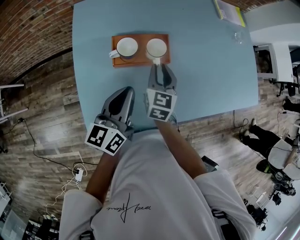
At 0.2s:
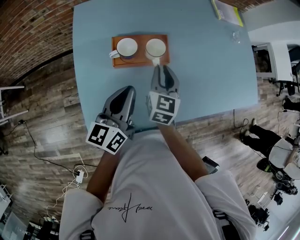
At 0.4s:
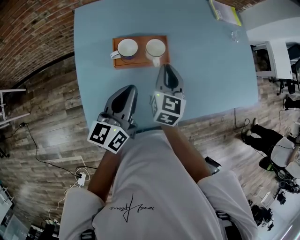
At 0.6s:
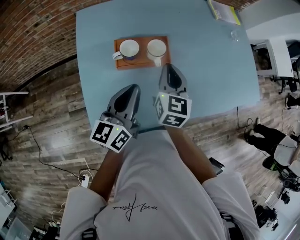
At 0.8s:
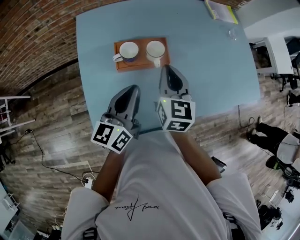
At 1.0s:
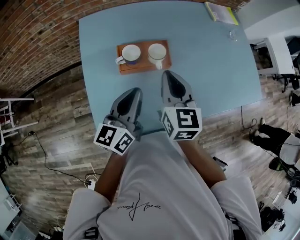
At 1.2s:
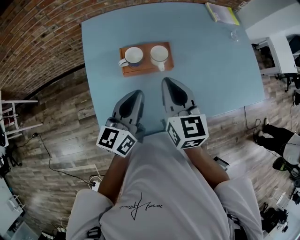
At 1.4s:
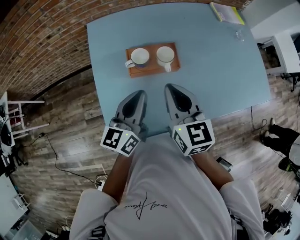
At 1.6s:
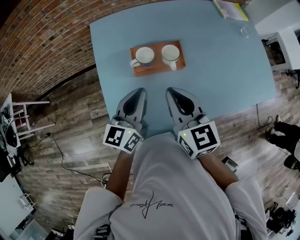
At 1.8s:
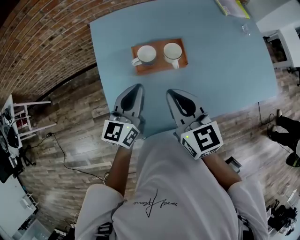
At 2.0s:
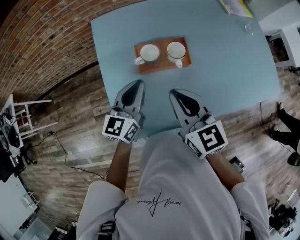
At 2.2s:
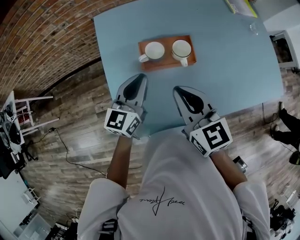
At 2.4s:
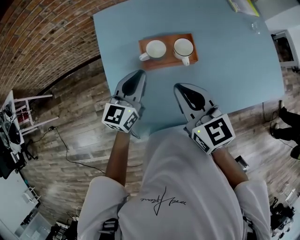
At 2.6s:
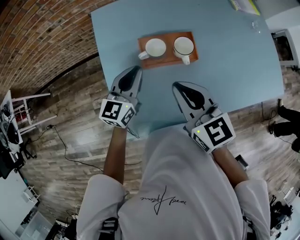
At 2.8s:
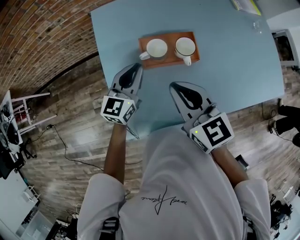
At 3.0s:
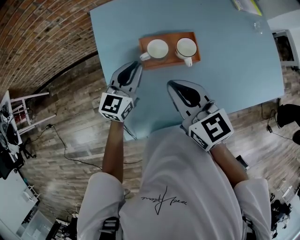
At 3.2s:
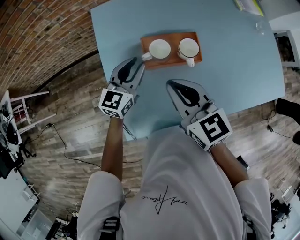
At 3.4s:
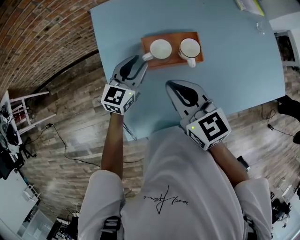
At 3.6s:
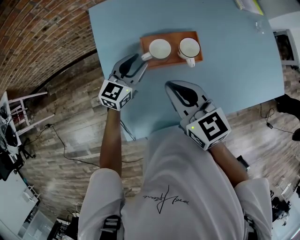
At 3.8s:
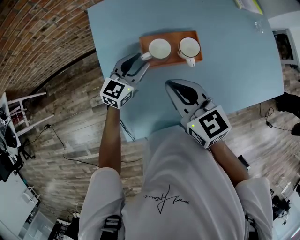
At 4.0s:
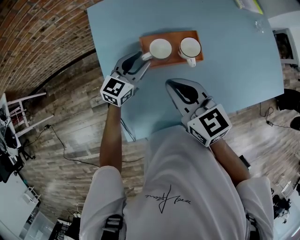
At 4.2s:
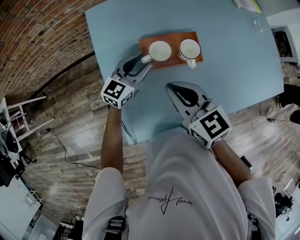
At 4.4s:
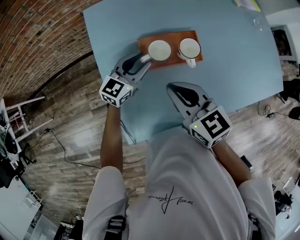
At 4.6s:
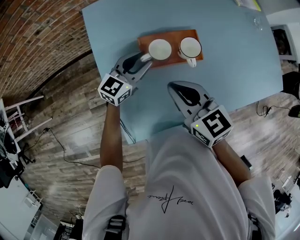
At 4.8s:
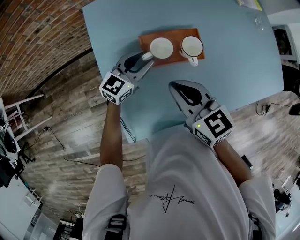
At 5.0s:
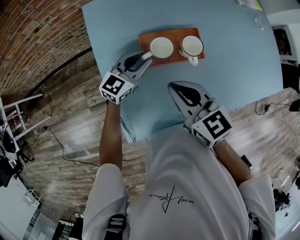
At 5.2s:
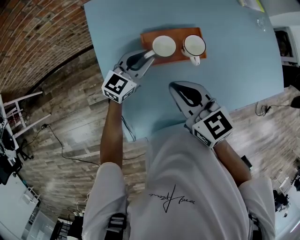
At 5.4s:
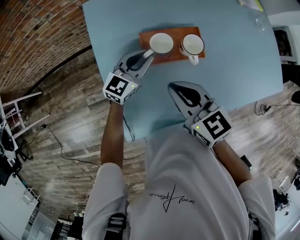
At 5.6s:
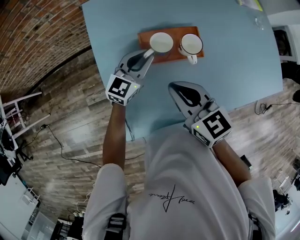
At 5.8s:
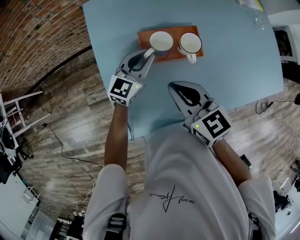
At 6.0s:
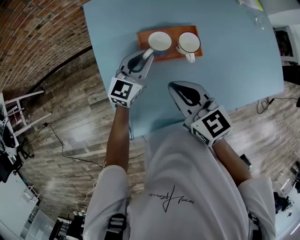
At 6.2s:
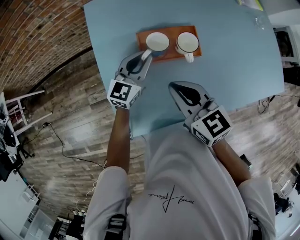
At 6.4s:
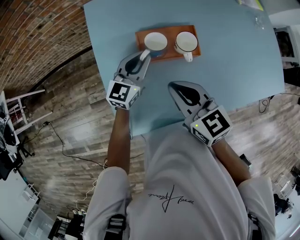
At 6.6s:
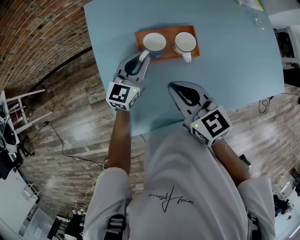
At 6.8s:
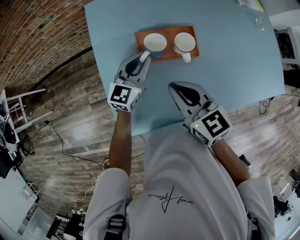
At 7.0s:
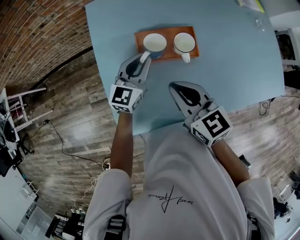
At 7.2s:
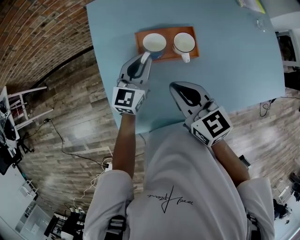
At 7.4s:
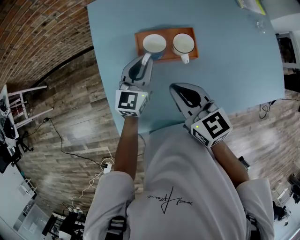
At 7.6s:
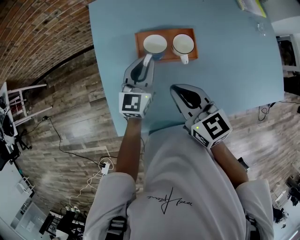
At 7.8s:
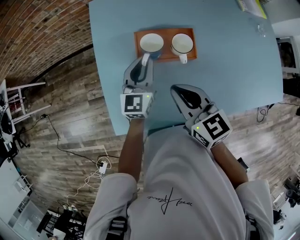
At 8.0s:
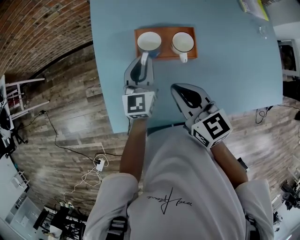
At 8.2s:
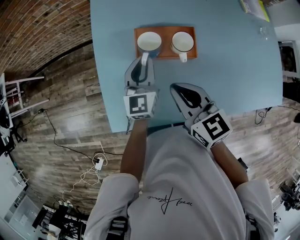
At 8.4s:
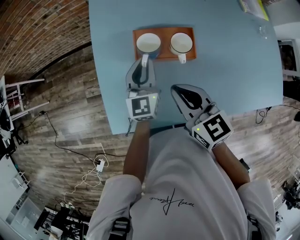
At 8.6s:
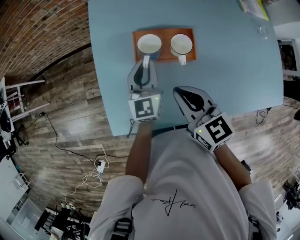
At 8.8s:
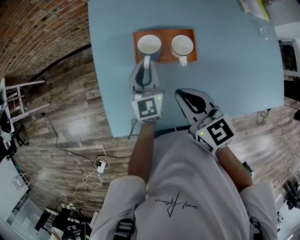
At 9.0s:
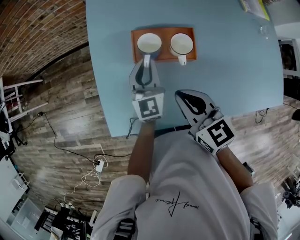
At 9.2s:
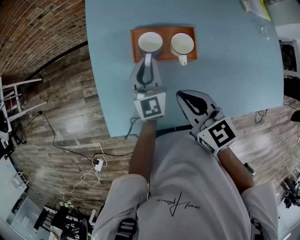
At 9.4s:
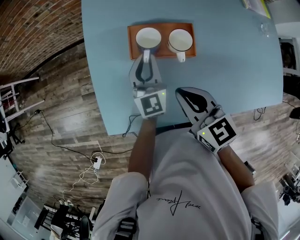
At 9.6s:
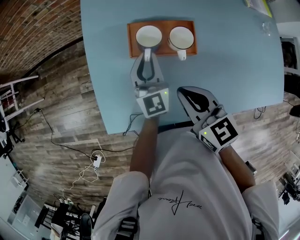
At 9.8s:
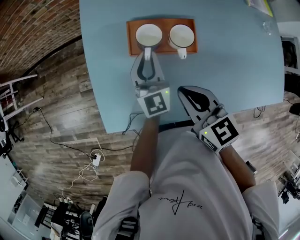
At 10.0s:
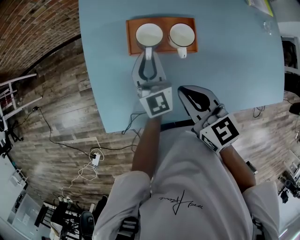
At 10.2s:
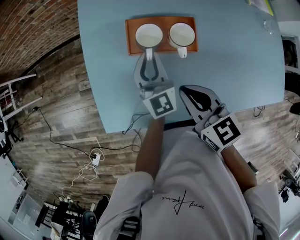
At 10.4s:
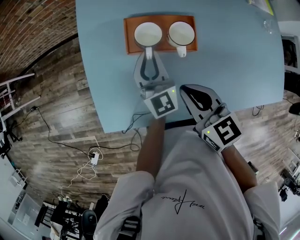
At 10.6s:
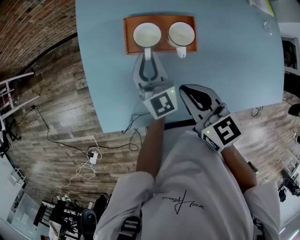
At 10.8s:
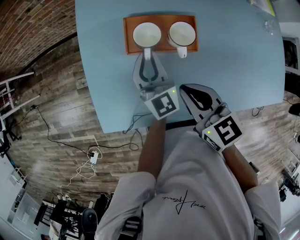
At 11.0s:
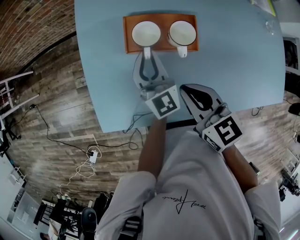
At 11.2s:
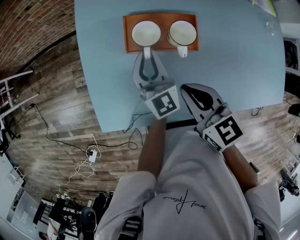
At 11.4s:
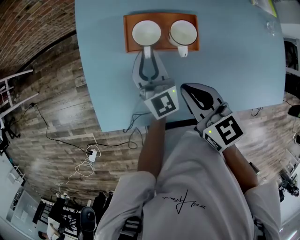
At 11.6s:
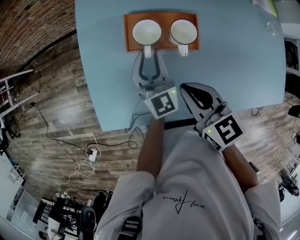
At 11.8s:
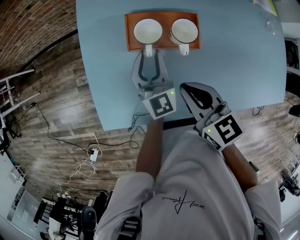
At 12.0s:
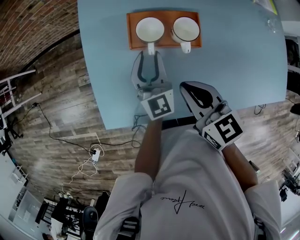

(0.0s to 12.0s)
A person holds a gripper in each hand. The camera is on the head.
0.0s - 1.6s: The right gripper moves upward and backward, about 20 cm, and rotates roughly 30 degrees.
1.6s - 3.0s: The left gripper shifts about 10 cm forward and downward, while the right gripper changes place by about 5 cm.
3.0s - 4.4s: The left gripper moves roughly 5 cm, and opens up.
4.4s - 6.0s: The left gripper closes its fingers.
6.0s - 7.6s: The grippers stay close to where they were, moving slightly.
7.6s - 9.0s: The left gripper turns by roughly 20 degrees.
9.0s - 12.0s: There are only small adjustments of the grippers.

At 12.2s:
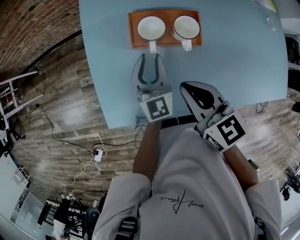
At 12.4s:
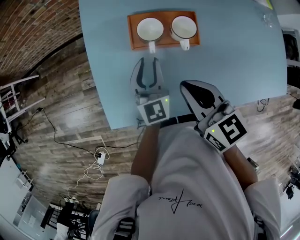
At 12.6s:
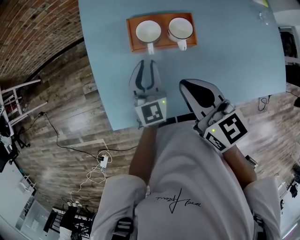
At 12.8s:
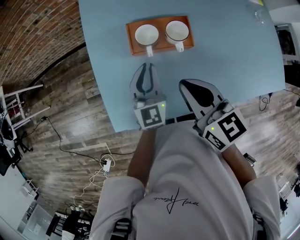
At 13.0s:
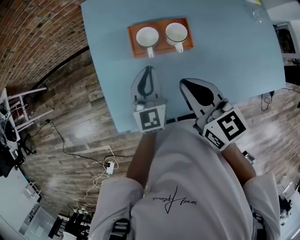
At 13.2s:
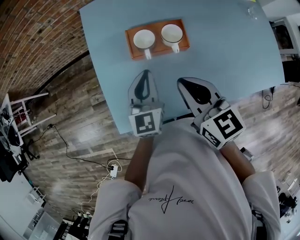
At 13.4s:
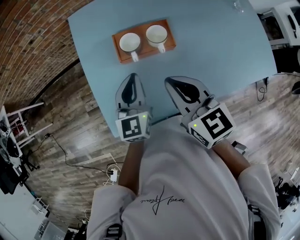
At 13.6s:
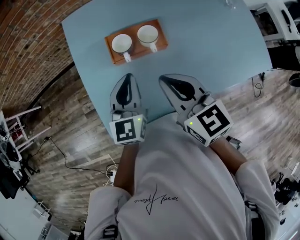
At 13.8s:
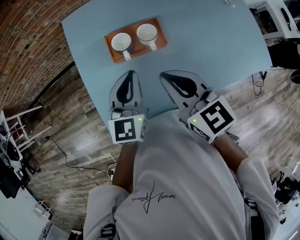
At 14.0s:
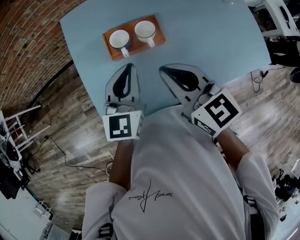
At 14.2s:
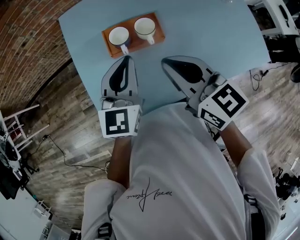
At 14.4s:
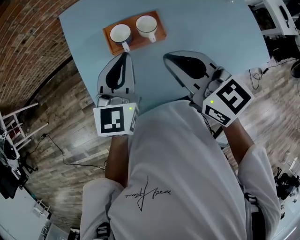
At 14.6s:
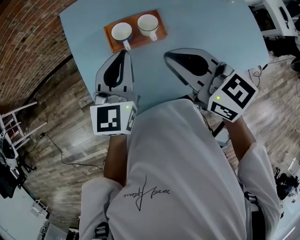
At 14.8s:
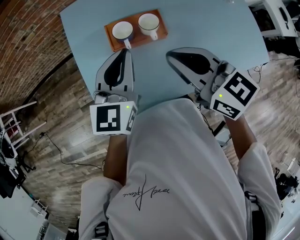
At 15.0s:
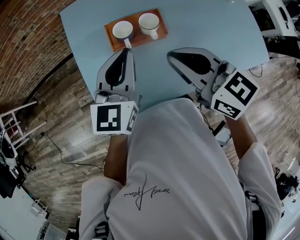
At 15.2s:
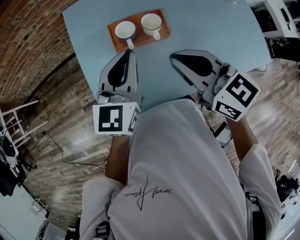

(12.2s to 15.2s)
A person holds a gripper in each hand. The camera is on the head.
12.2s - 13.8s: The left gripper shifts some 15 cm upward and backward, rotates approximately 20 degrees, and closes; the right gripper shifts some 10 cm upward.
13.8s - 15.2s: The left gripper heads upward, covering some 5 cm.

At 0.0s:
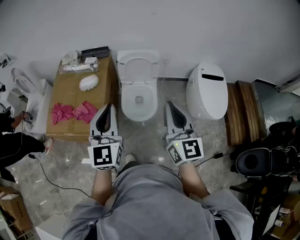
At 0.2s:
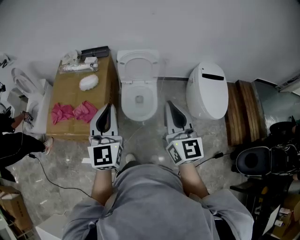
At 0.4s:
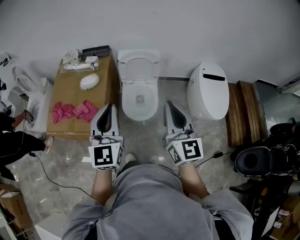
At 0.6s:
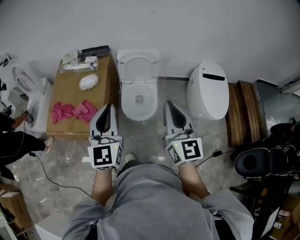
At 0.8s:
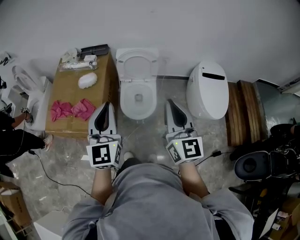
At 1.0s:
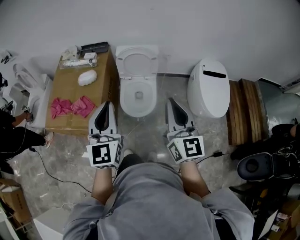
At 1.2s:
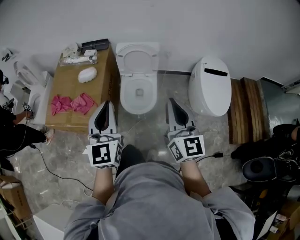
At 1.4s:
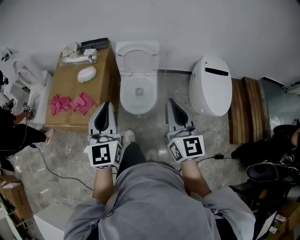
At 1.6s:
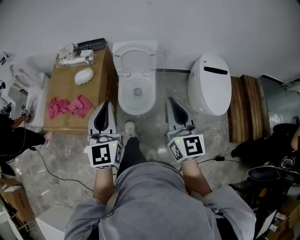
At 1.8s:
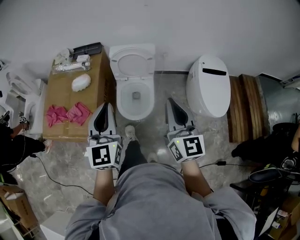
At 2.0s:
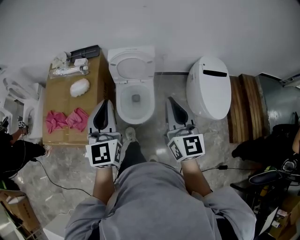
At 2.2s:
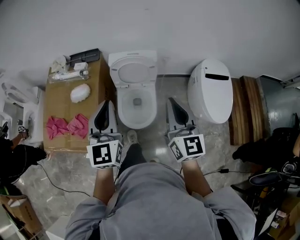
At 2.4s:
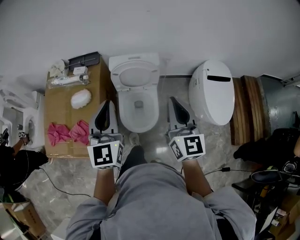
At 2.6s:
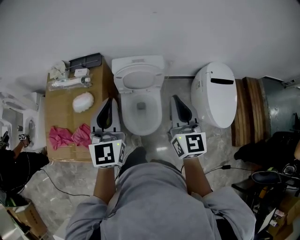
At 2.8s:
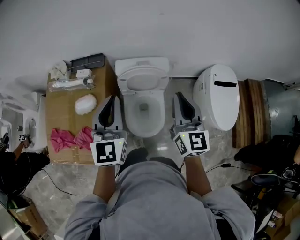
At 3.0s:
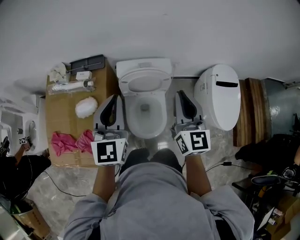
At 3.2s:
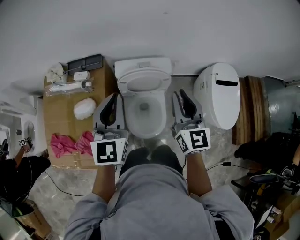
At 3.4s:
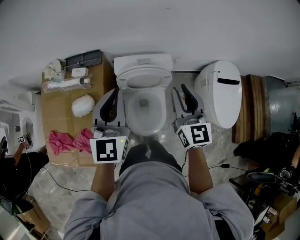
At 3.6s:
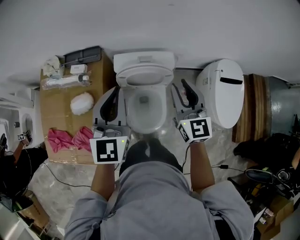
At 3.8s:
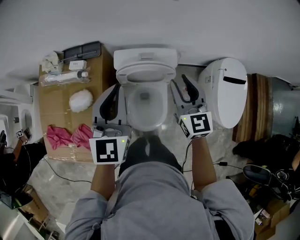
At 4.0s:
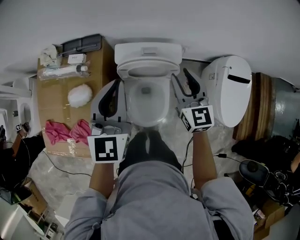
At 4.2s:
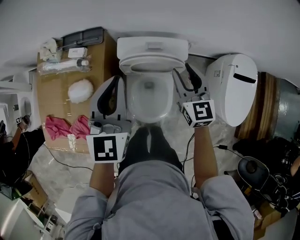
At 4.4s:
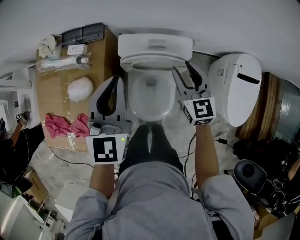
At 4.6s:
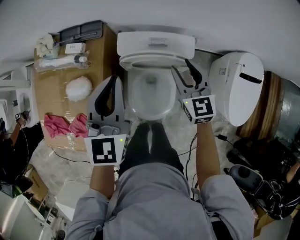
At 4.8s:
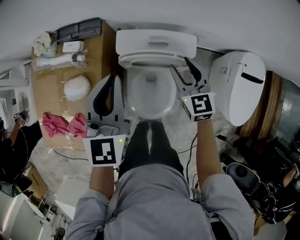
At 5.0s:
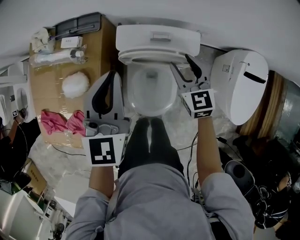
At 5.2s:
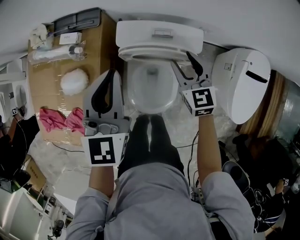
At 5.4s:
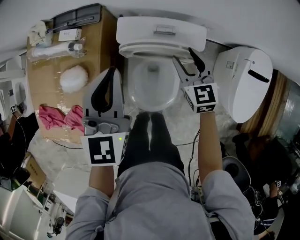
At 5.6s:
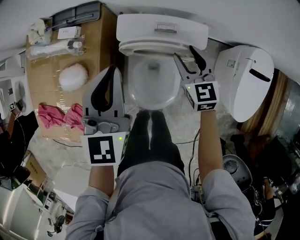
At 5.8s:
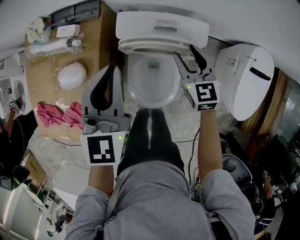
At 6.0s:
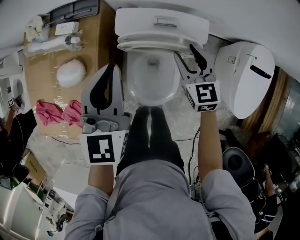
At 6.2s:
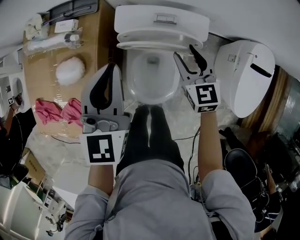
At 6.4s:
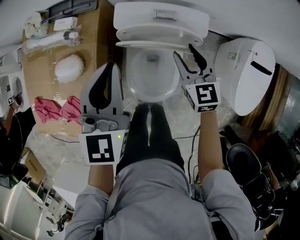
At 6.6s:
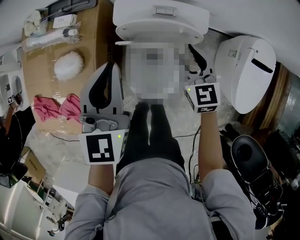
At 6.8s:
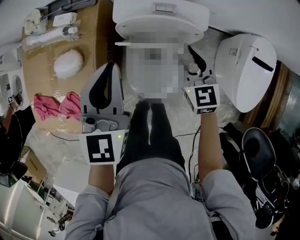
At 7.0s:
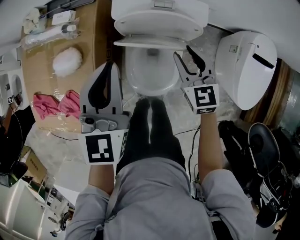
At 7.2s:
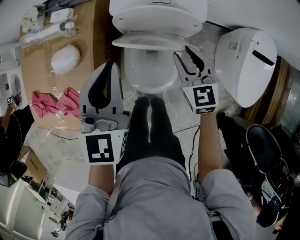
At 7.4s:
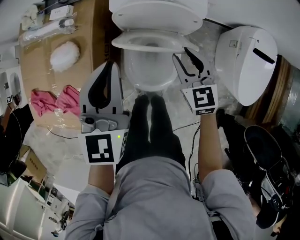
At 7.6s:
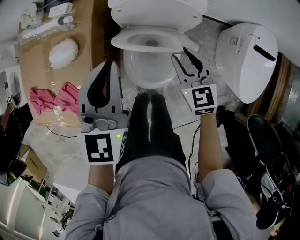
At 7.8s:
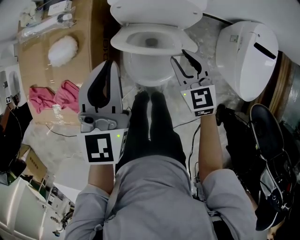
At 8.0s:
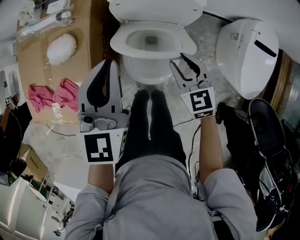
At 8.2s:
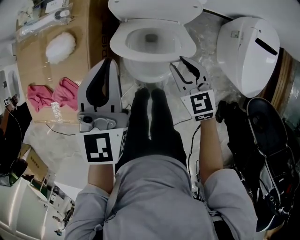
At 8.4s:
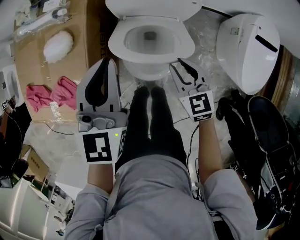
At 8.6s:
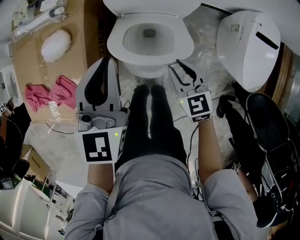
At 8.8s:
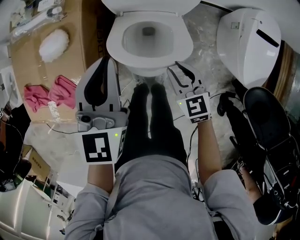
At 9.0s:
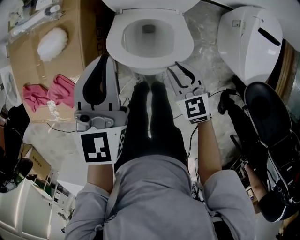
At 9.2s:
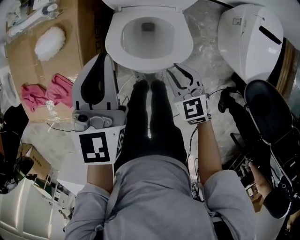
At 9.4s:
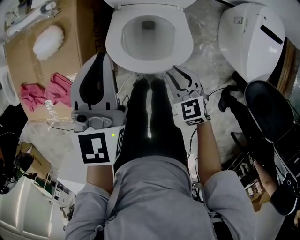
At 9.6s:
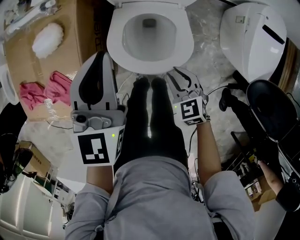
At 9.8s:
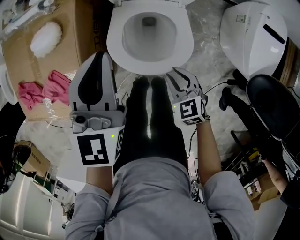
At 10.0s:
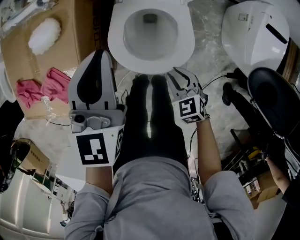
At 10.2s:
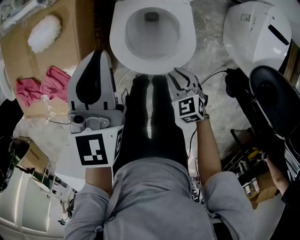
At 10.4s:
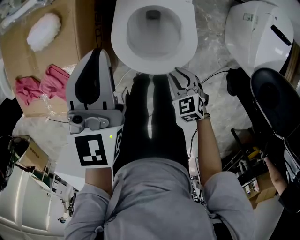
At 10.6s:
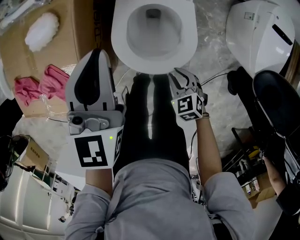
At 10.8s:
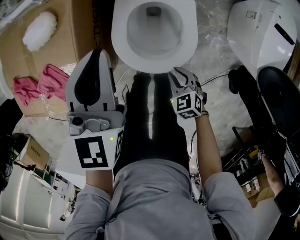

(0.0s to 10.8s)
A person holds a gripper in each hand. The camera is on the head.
0.0s - 1.6s: Both grippers move to the right, approximately 5 cm.
1.6s - 3.0s: Both grippers move forward, approximately 30 cm.
3.0s - 4.6s: The left gripper travels forward and downward by about 15 cm, while the right gripper goes approximately 25 cm downward and forward, swivels about 30 degrees, and opens up.
4.6s - 6.2s: Both grippers move downward, about 5 cm.
6.2s - 7.8s: The grippers both shift backward by approximately 10 cm.
7.8s - 9.2s: The right gripper travels backward and downward by approximately 15 cm.
9.2s - 10.8s: The left gripper travels downward by approximately 5 cm, while the right gripper is displaced downward and backward by some 15 cm.
